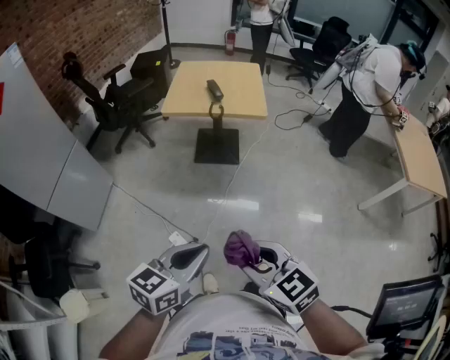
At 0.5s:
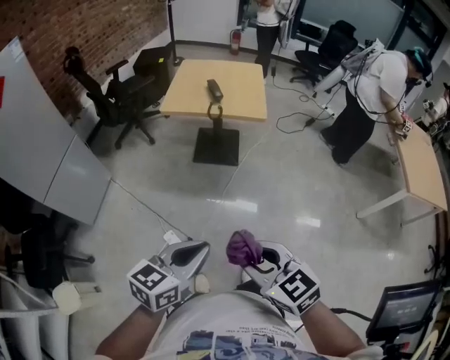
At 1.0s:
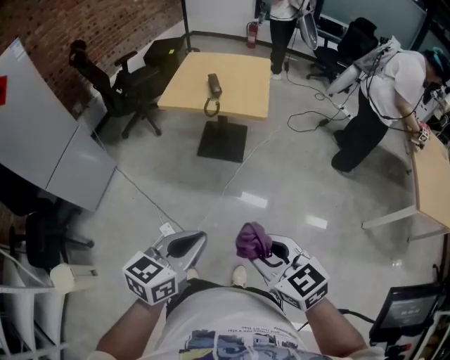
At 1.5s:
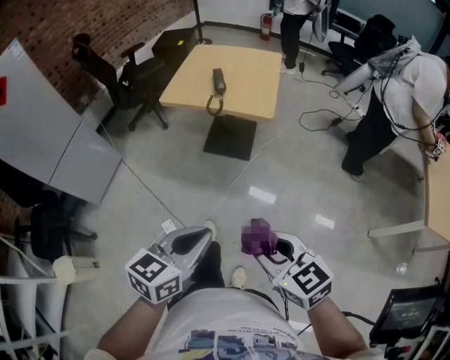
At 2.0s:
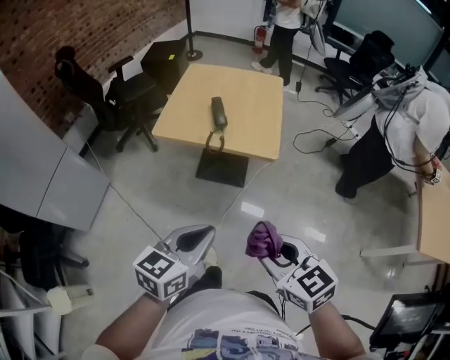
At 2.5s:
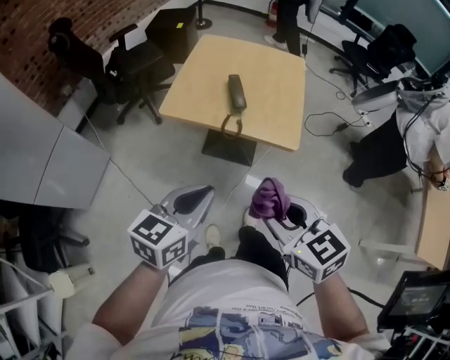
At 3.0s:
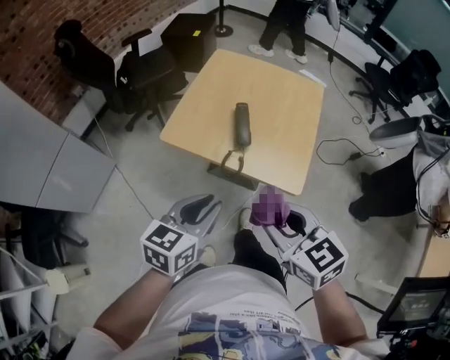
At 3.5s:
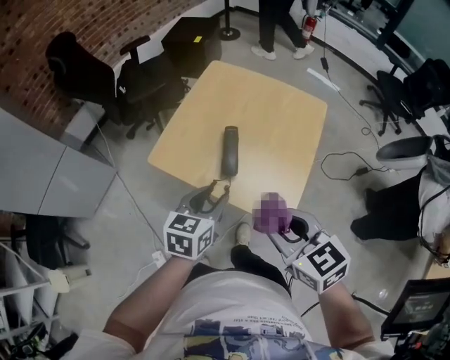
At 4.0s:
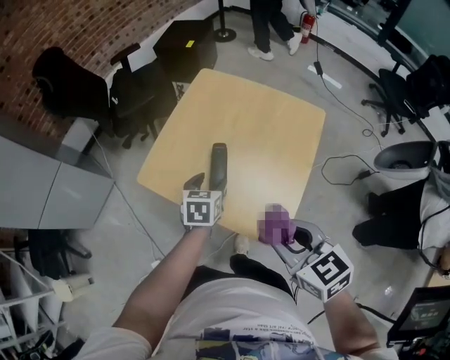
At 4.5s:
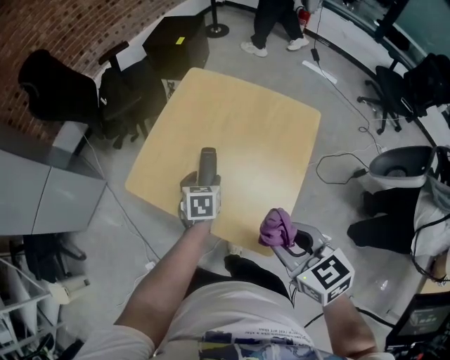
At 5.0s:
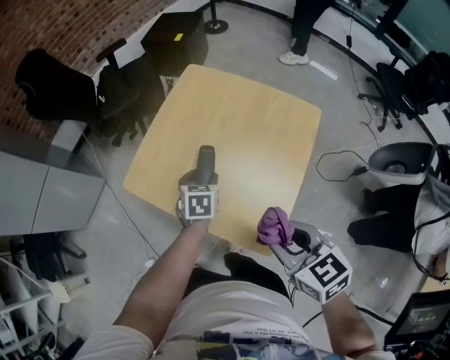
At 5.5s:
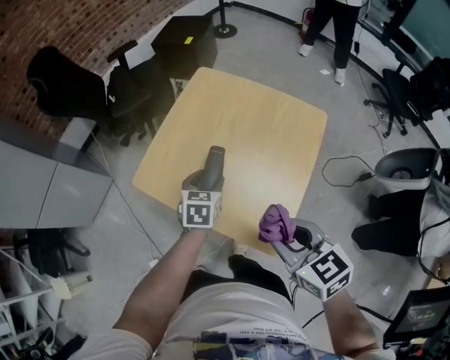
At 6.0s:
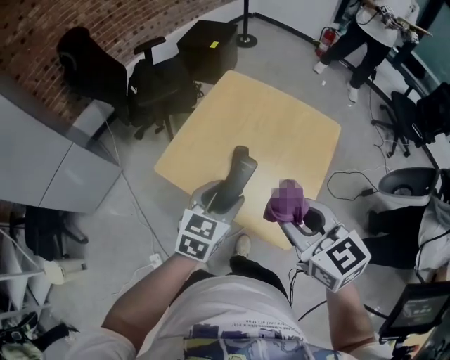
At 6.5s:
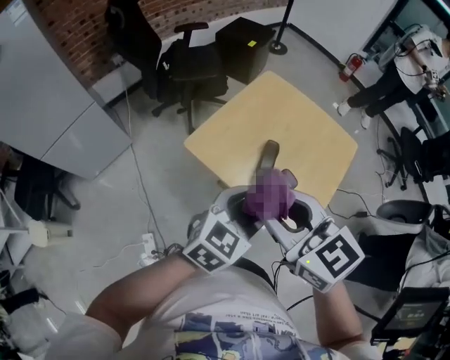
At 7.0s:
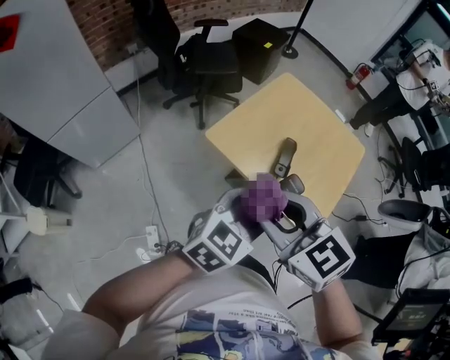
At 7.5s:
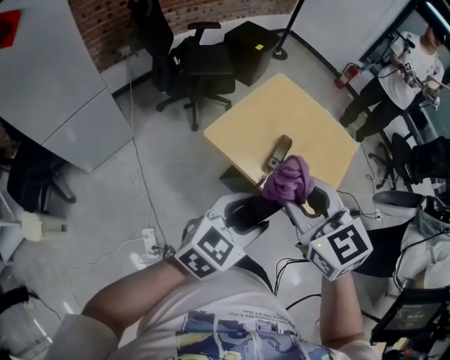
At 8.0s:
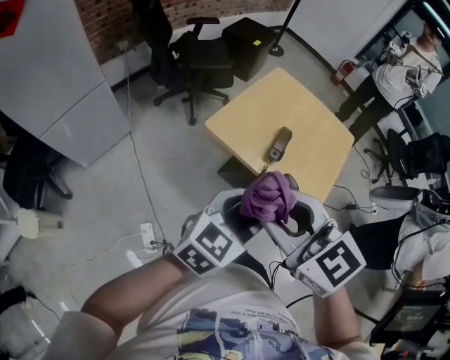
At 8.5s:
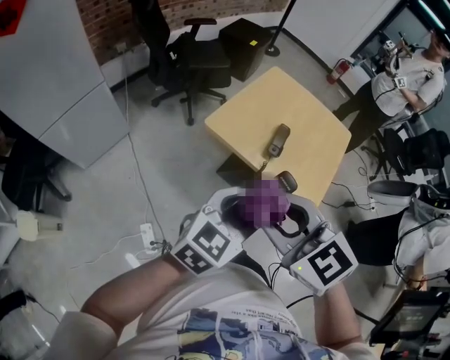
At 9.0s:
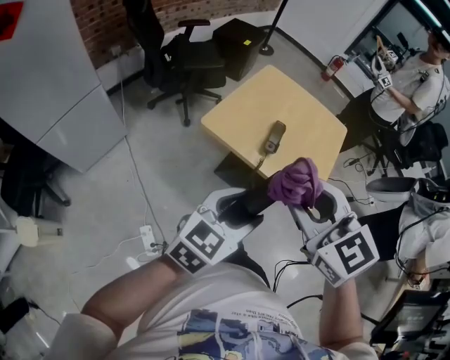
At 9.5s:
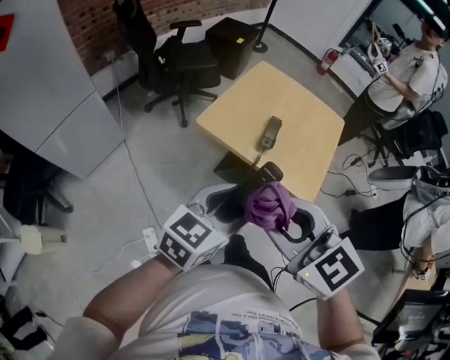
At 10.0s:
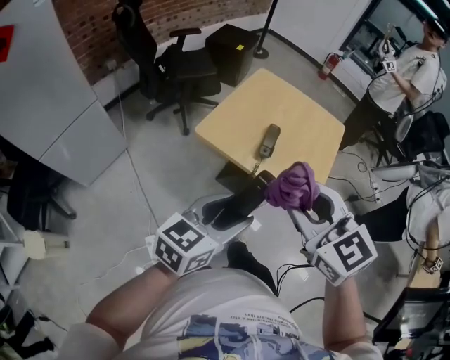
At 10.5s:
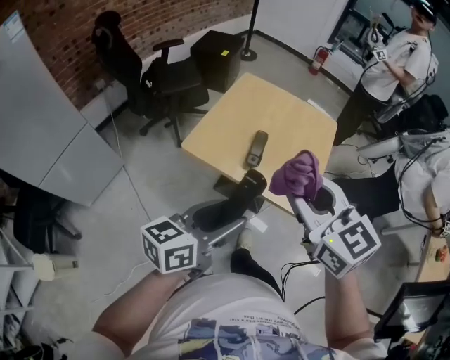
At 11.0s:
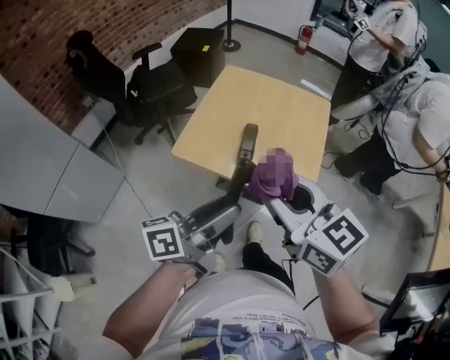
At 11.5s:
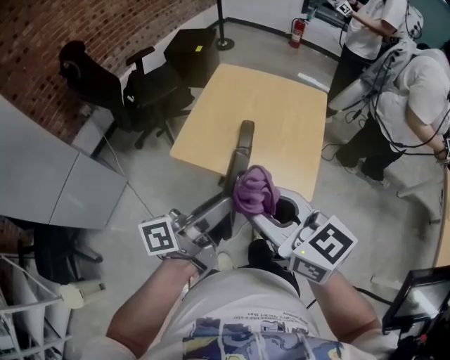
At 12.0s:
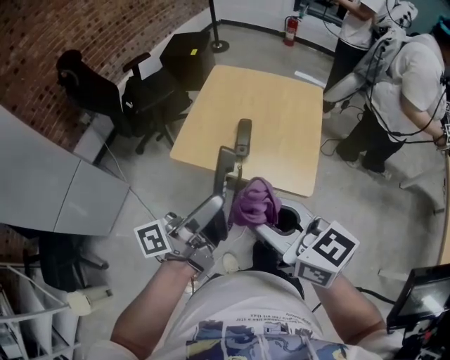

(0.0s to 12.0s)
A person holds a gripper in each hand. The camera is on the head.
0.0s - 2.0s: The left gripper shifts about 25 cm forward. Meanwhile the right gripper is displaced forward and to the right by about 30 cm.
2.0s - 4.0s: The right gripper ends up approximately 40 cm from where it was, while the left gripper changes place by roughly 50 cm, changes its angle by about 40 degrees, and opens up.
4.0s - 6.0s: The right gripper goes roughly 5 cm upward. Meanwhile the left gripper goes roughly 15 cm upward and backward, and rotates about 20 degrees.
6.0s - 8.0s: The left gripper moves backward, to the left and upward, approximately 20 cm. The right gripper is displaced to the left and backward by roughly 25 cm, and swivels some 20 degrees.
8.0s - 10.0s: The right gripper travels to the right by about 10 cm.
10.0s - 12.0s: The right gripper rotates approximately 30 degrees, while the left gripper shifts approximately 10 cm forward and upward, and rolls counterclockwise, seen from behind, by roughly 50 degrees.

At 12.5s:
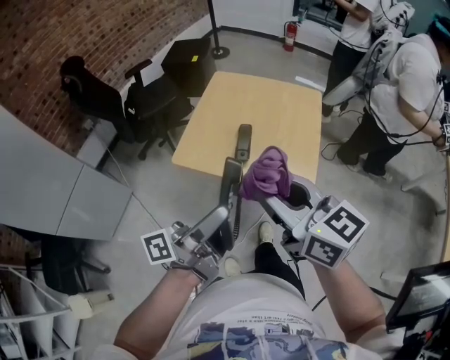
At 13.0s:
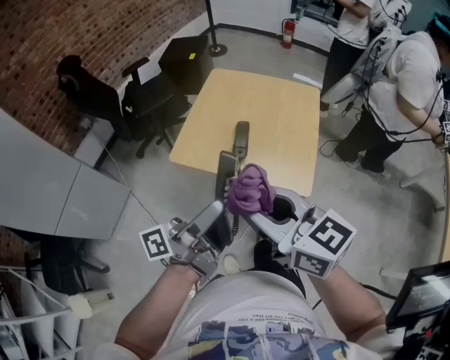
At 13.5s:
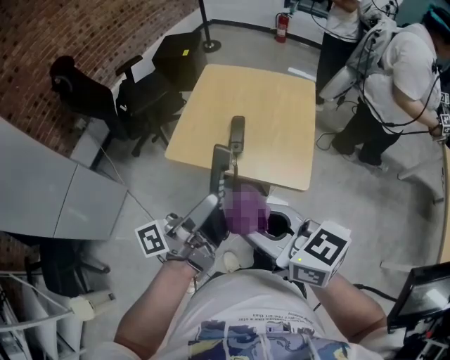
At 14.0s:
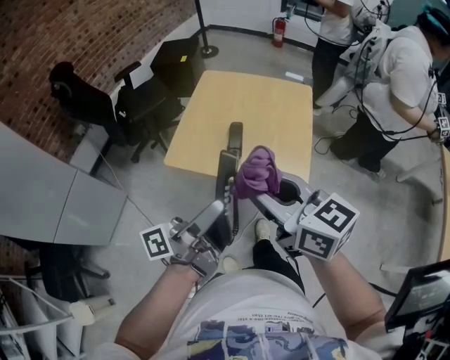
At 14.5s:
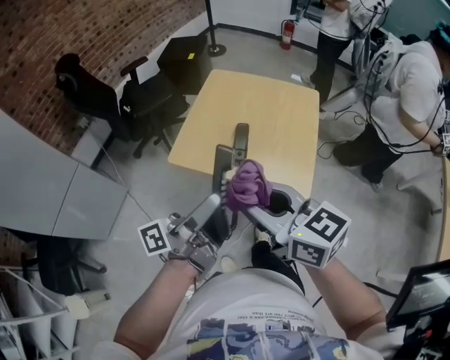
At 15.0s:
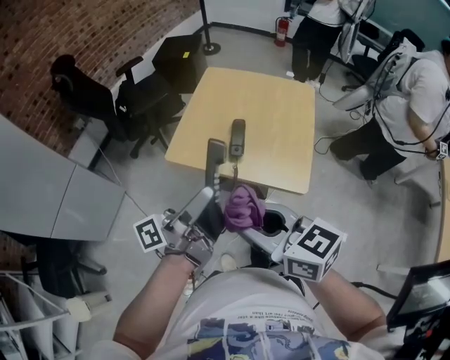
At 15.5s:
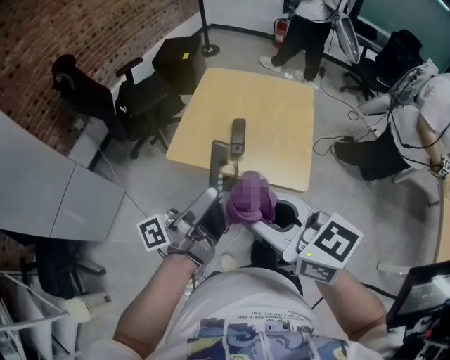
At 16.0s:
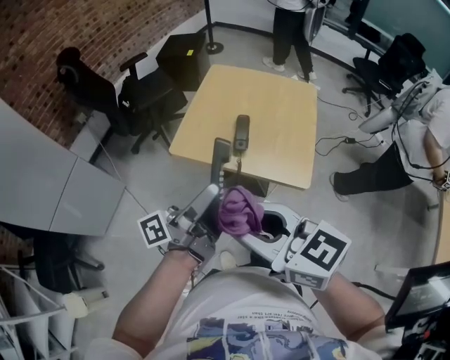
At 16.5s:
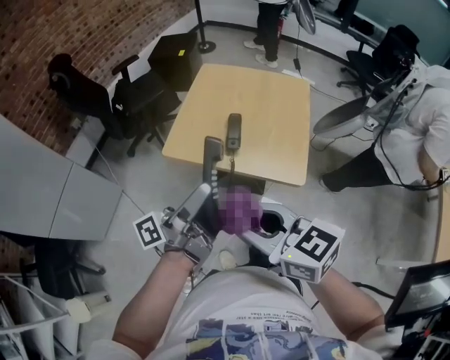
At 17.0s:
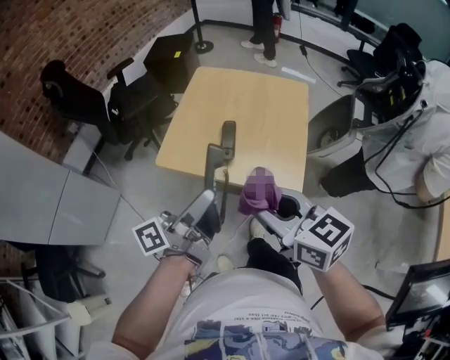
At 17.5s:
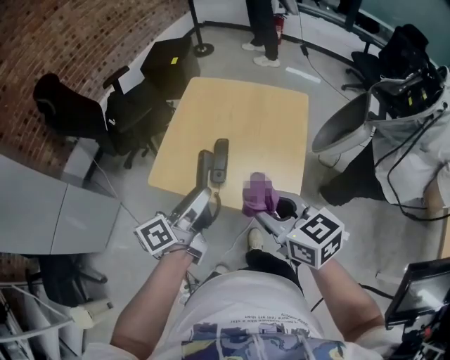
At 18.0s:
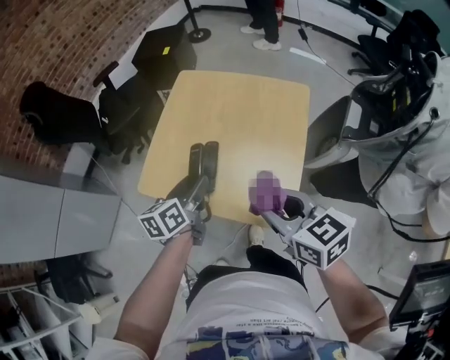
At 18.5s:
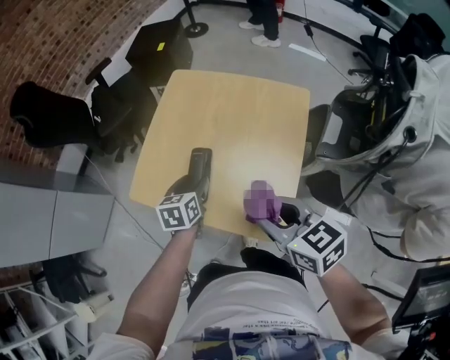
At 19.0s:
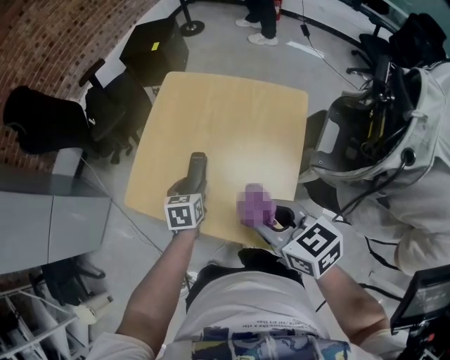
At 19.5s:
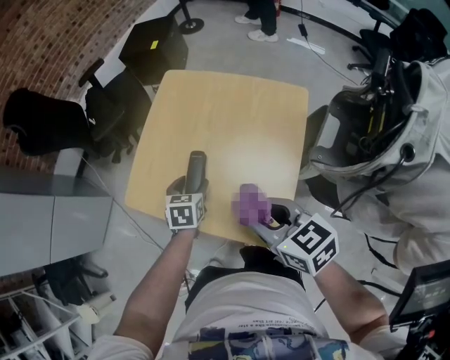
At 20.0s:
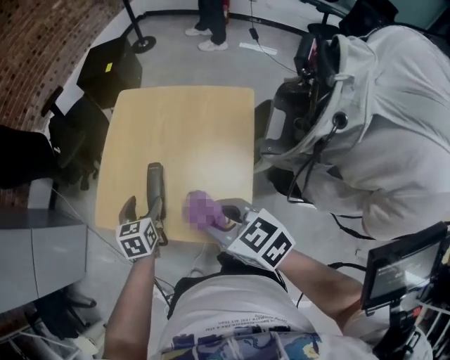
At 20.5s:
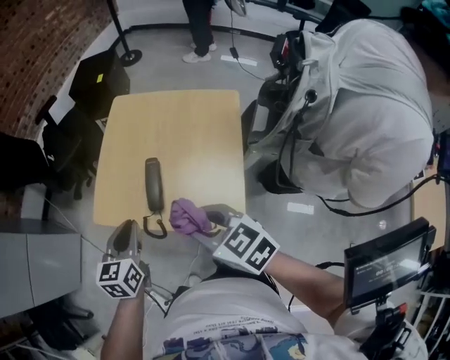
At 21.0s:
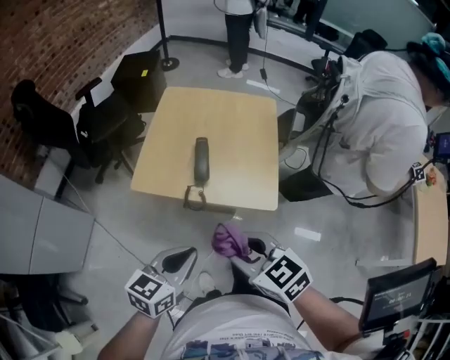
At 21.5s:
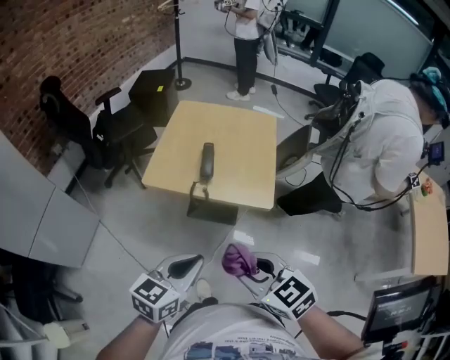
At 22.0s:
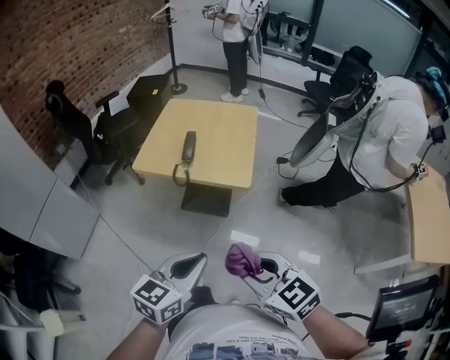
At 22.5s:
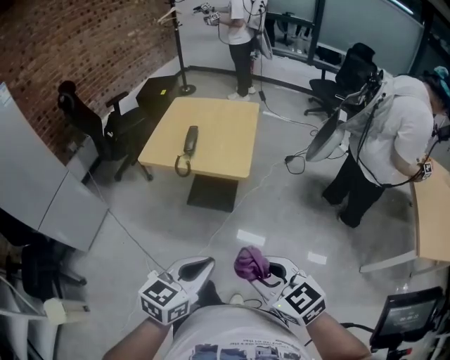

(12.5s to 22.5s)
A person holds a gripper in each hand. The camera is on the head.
12.5s - 14.5s: The right gripper goes backward and returns, roughly 5 cm each way.
14.5s - 16.5s: The right gripper is displaced backward by roughly 10 cm.
16.5s - 18.5s: The right gripper goes some 30 cm to the right, forward and downward. Meanwhile the left gripper shifts roughly 35 cm downward and forward, and points its fingers roughly 70 degrees further downward.
18.5s - 20.5s: The left gripper travels upward, to the left and backward by approximately 15 cm, and closes up. The right gripper goes roughly 10 cm to the left.
20.5s - 22.5s: The two grippers travel together, backward, approximately 40 cm. The left gripper rotates approximately 30 degrees.

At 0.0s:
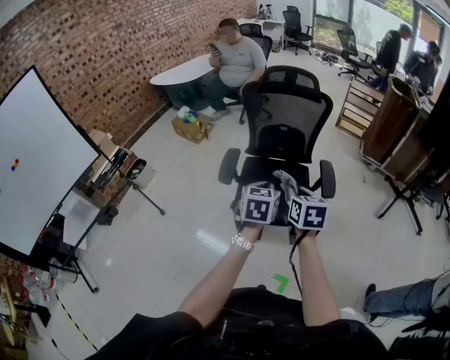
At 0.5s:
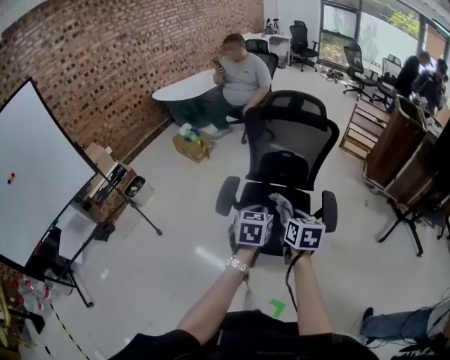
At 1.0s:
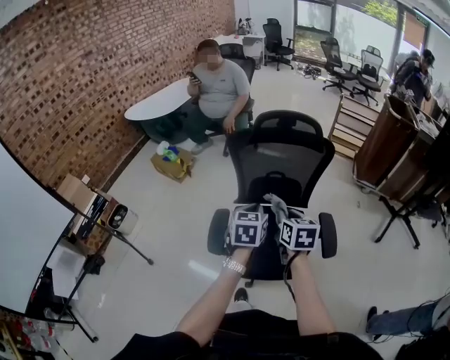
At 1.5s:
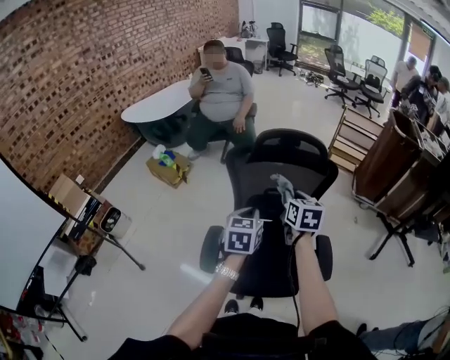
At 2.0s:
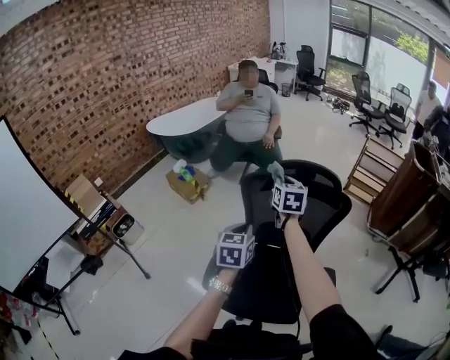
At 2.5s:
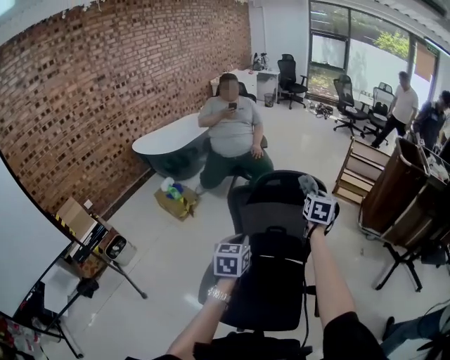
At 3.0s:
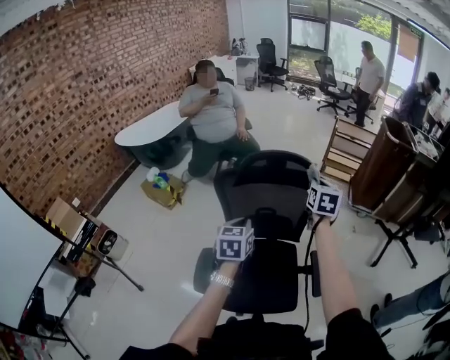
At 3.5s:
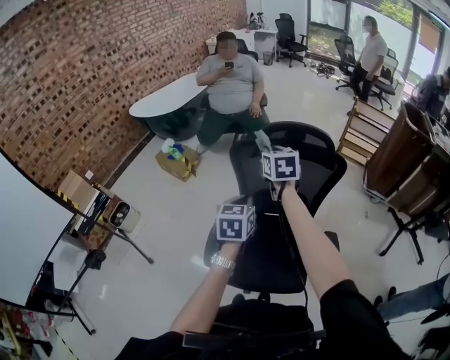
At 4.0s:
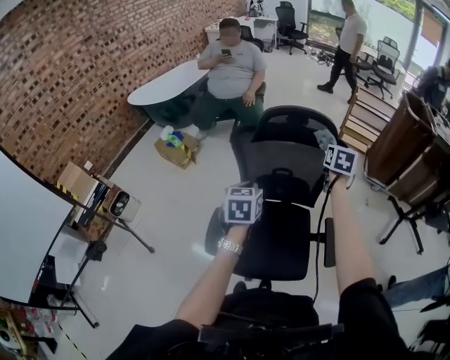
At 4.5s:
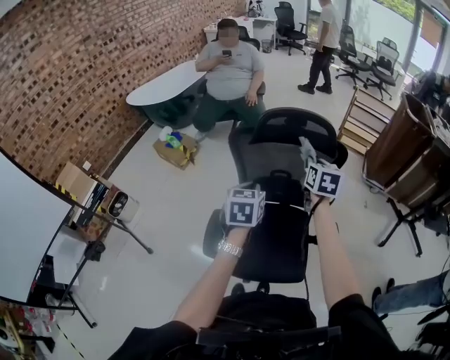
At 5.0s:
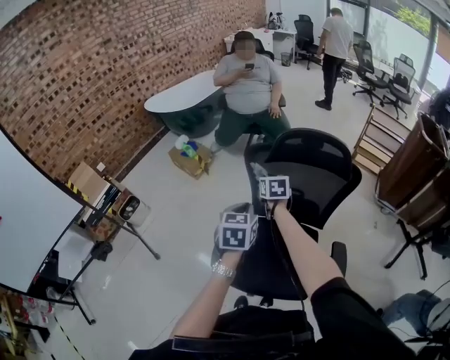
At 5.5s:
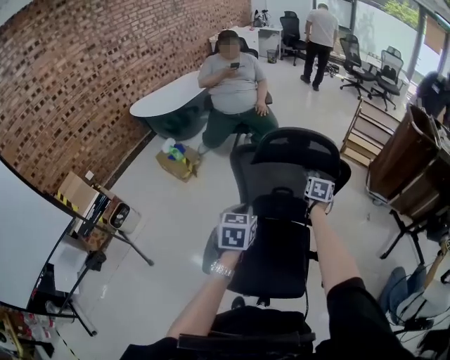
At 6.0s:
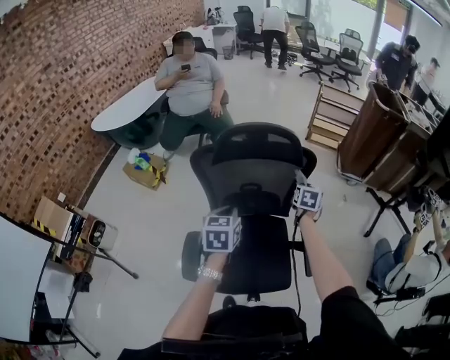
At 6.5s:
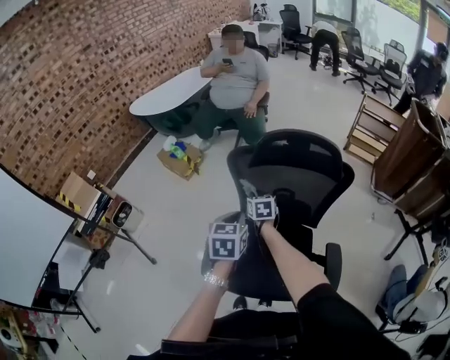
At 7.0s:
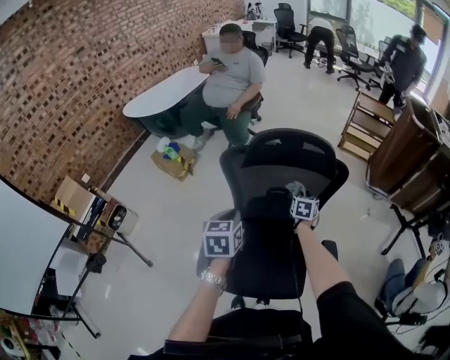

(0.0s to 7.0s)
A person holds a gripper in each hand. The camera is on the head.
0.0s - 2.0s: The right gripper moves forward, some 50 cm. The left gripper heads forward, covering some 35 cm.
2.0s - 3.5s: The right gripper reaches roughly 25 cm to the right, then returns.
3.5s - 5.0s: The right gripper is displaced downward by roughly 15 cm, and moves roughly 25 cm to the right and comes back.
5.0s - 7.0s: The left gripper reaches about 10 cm to the right, then returns. Meanwhile the right gripper swings left and right, about 35 cm each way, with 2 reversals, and rotates approximately 30 degrees.
